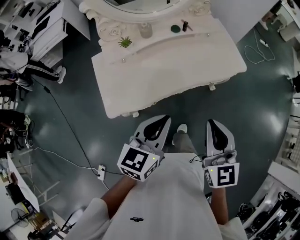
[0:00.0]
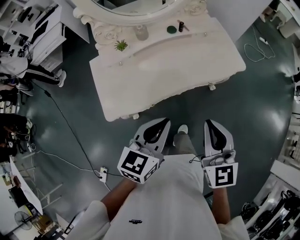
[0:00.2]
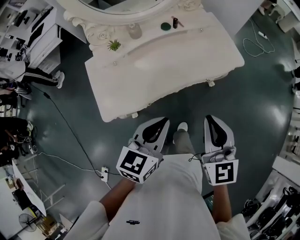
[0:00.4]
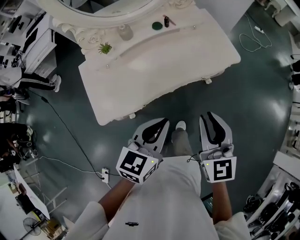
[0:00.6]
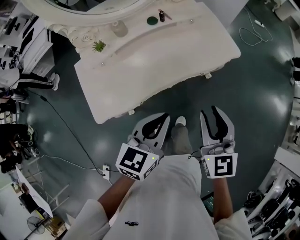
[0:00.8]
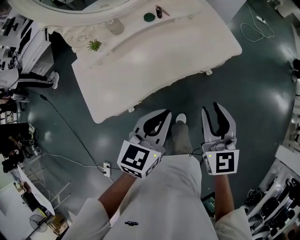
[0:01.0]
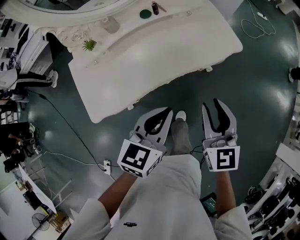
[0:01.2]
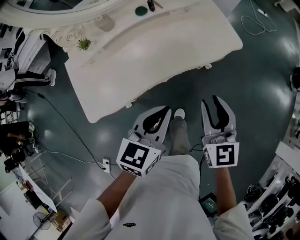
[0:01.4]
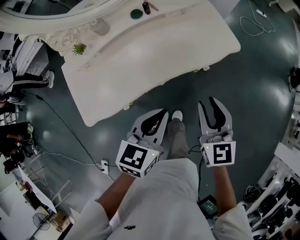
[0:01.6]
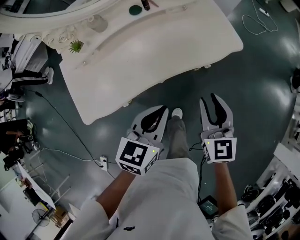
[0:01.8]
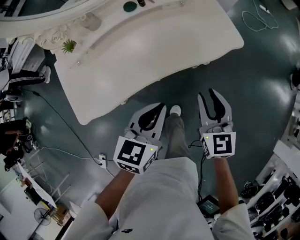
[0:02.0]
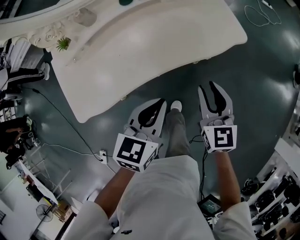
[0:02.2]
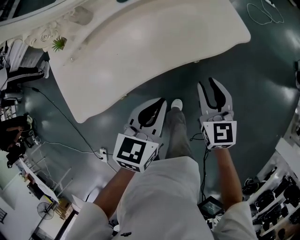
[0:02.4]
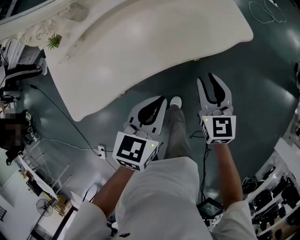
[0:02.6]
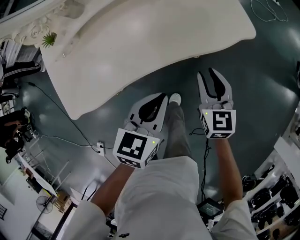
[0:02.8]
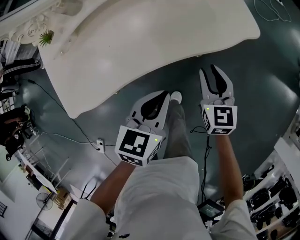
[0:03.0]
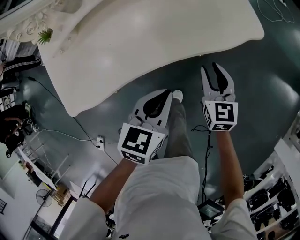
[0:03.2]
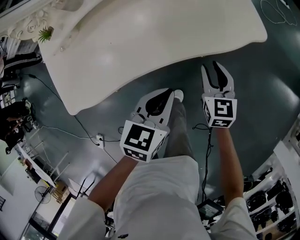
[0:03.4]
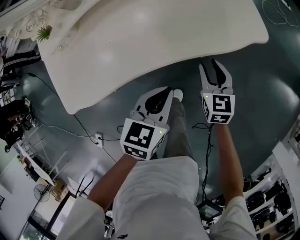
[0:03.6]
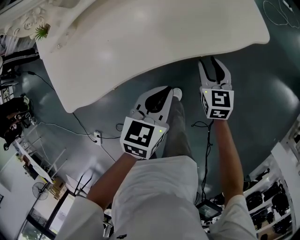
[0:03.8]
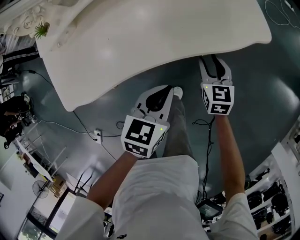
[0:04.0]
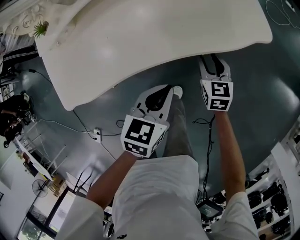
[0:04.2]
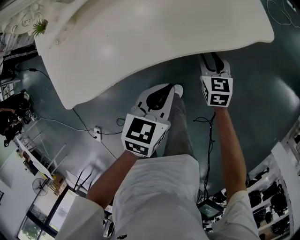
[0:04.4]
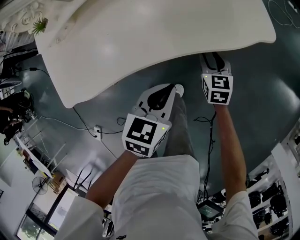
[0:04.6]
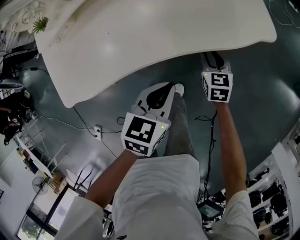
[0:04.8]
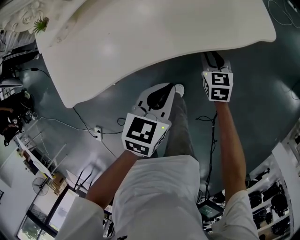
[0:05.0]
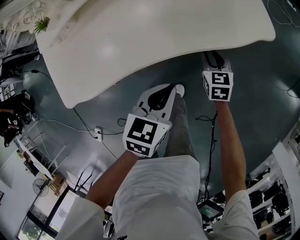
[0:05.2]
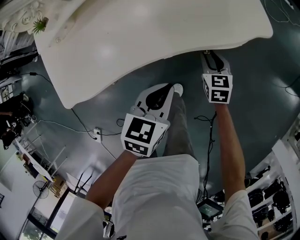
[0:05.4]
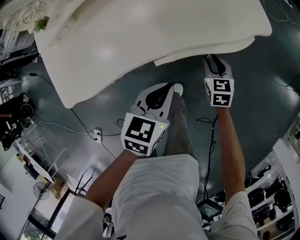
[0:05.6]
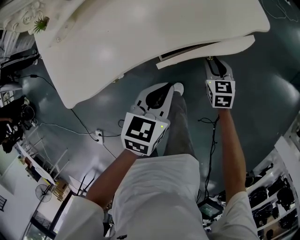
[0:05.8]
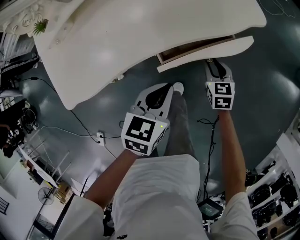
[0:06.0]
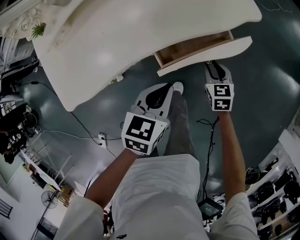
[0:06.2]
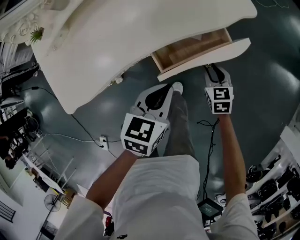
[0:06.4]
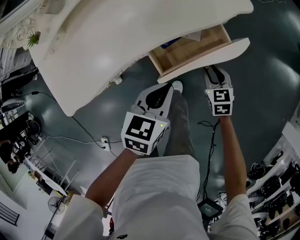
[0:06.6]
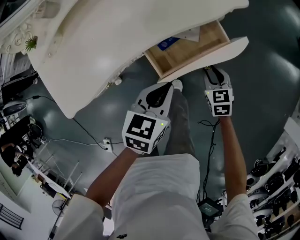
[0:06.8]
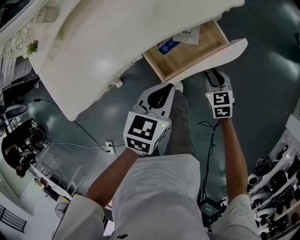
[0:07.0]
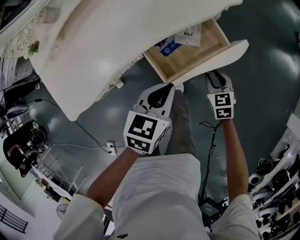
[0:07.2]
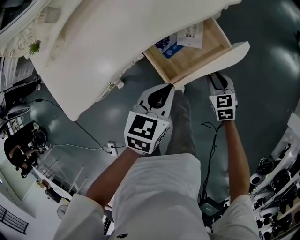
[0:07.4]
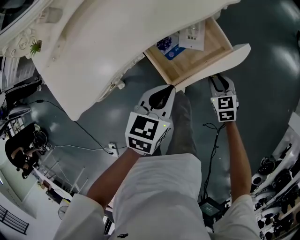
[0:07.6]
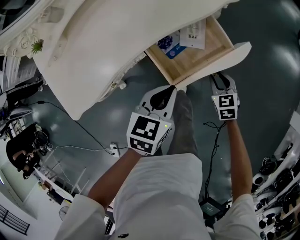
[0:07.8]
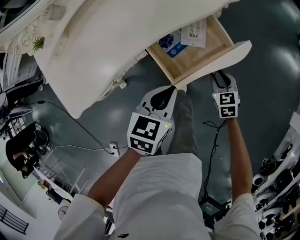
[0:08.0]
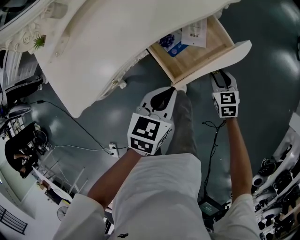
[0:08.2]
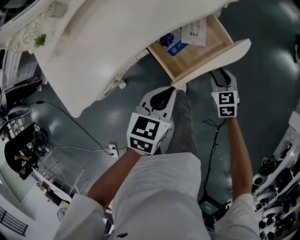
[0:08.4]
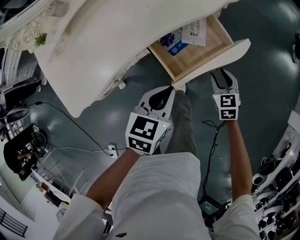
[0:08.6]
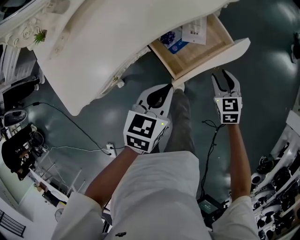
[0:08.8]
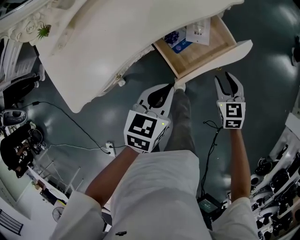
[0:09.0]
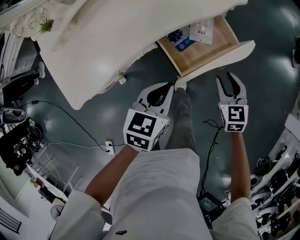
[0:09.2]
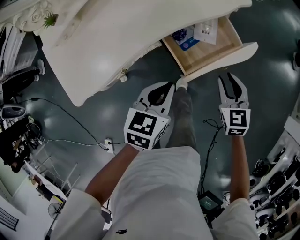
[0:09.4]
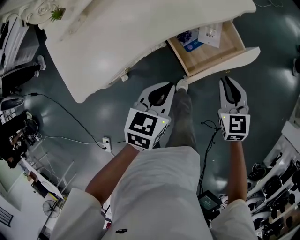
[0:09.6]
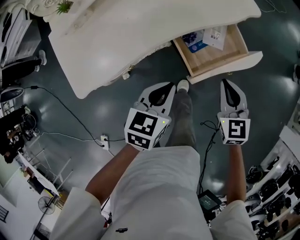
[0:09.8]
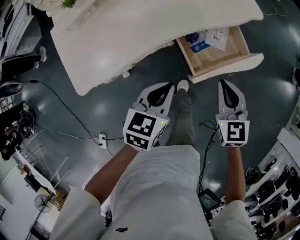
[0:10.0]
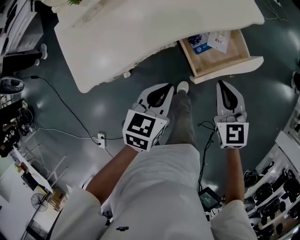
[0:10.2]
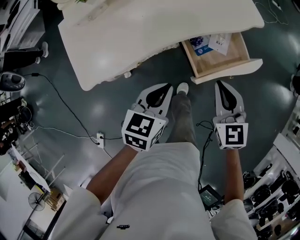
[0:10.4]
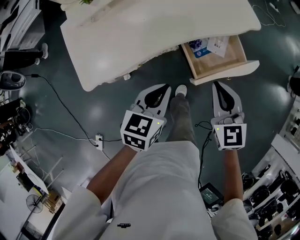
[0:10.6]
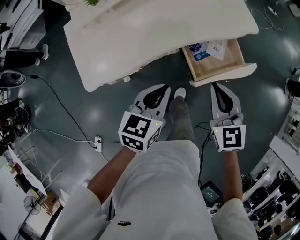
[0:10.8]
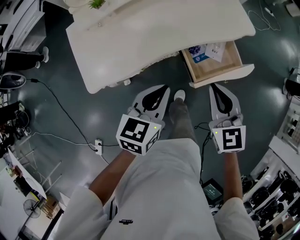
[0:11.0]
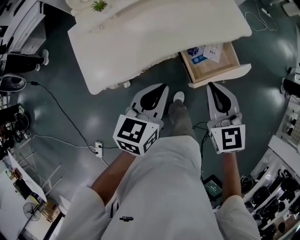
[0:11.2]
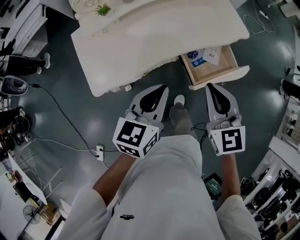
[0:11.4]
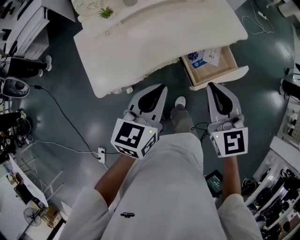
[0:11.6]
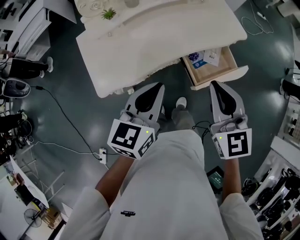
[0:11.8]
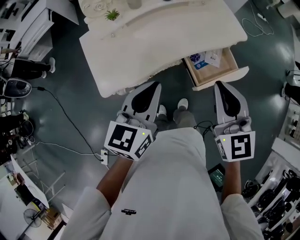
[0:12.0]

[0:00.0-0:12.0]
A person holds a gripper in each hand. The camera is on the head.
0:00.0 to 0:01.6: The left gripper is displaced to the right, downward and forward by approximately 15 cm. The right gripper heads downward, forward and to the right, covering some 20 cm, and opens.
0:01.6 to 0:03.0: The right gripper is displaced downward and forward by approximately 20 cm; the left gripper moves downward, about 10 cm.
0:03.0 to 0:04.4: The left gripper is displaced downward by about 5 cm; the right gripper goes some 15 cm downward.
0:04.4 to 0:06.0: The right gripper shifts some 5 cm backward.
0:06.0 to 0:07.6: The right gripper is displaced backward and to the right by some 10 cm.
0:07.6 to 0:09.0: The left gripper shifts by about 5 cm. Meanwhile the right gripper moves upward, about 10 cm.
0:09.0 to 0:10.4: The right gripper heads upward and to the left, covering some 20 cm, and closes its fingers. The left gripper travels to the left by roughly 10 cm.
0:10.4 to 0:12.0: The right gripper is displaced upward by roughly 20 cm. The left gripper travels upward and to the left by roughly 20 cm, and changes its angle by some 20 degrees.

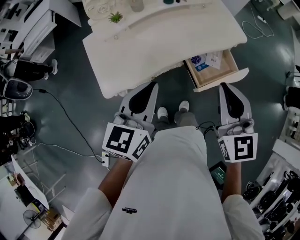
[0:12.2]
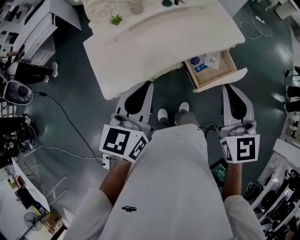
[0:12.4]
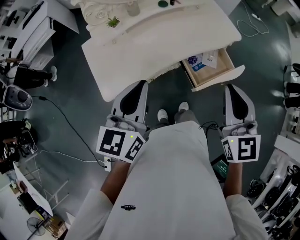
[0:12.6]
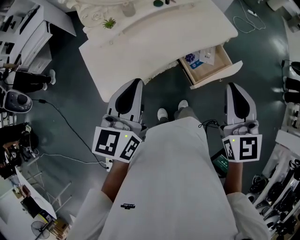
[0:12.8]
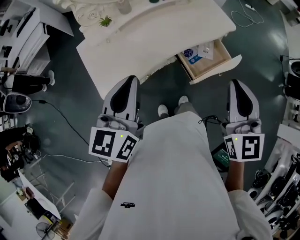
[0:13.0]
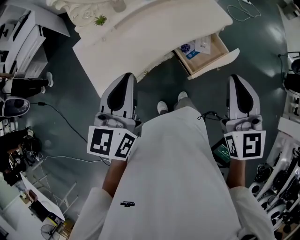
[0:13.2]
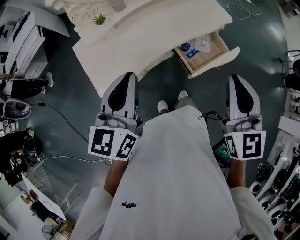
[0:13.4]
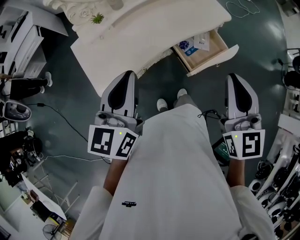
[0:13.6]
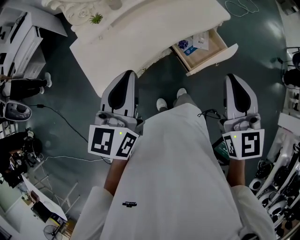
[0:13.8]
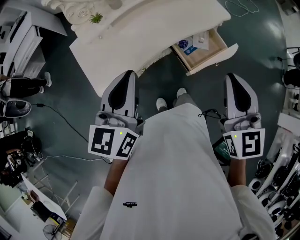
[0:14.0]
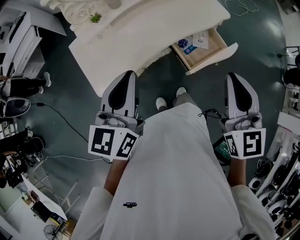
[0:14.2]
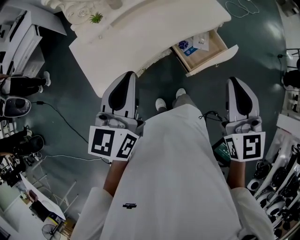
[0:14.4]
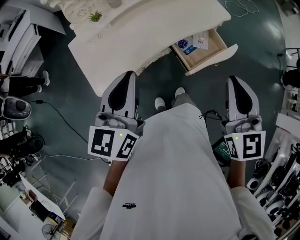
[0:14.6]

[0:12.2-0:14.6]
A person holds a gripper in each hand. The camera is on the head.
0:12.2 to 0:13.4: The right gripper ends up about 5 cm from where it was. The left gripper shifts by approximately 5 cm.
0:13.4 to 0:14.6: Both grippers stay about where they are.

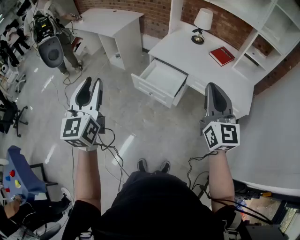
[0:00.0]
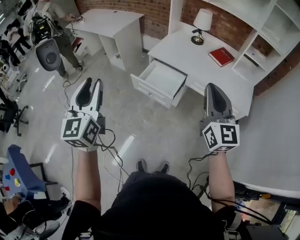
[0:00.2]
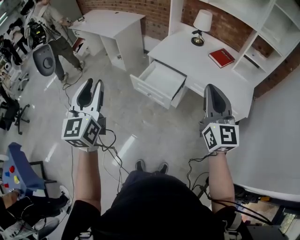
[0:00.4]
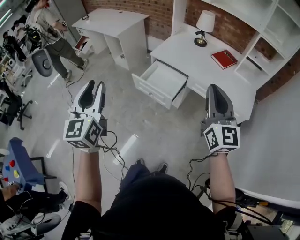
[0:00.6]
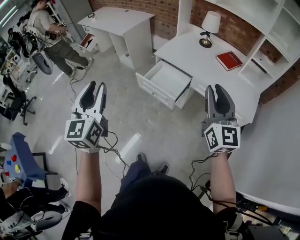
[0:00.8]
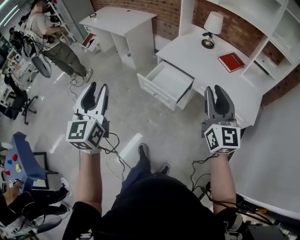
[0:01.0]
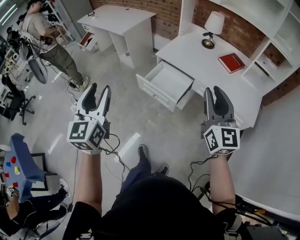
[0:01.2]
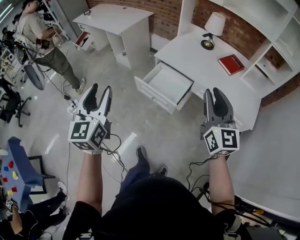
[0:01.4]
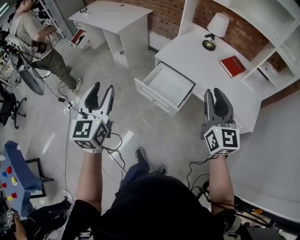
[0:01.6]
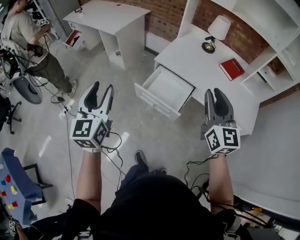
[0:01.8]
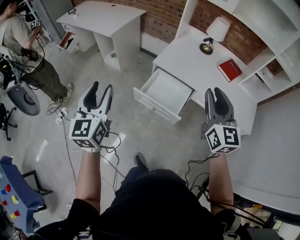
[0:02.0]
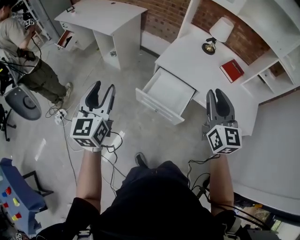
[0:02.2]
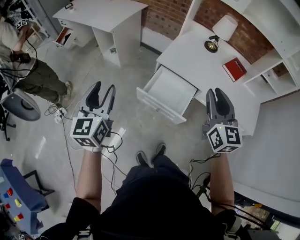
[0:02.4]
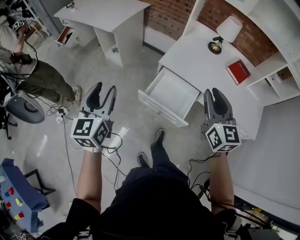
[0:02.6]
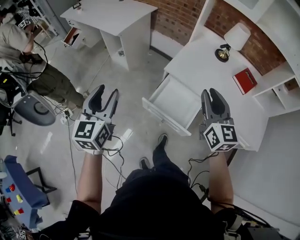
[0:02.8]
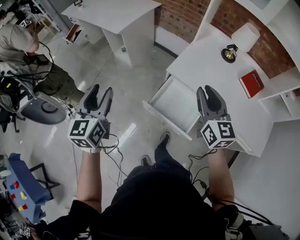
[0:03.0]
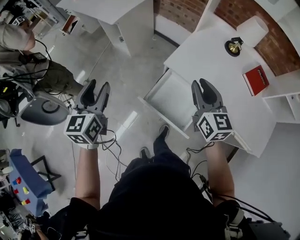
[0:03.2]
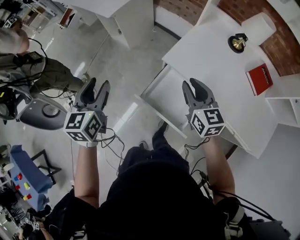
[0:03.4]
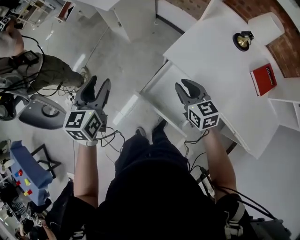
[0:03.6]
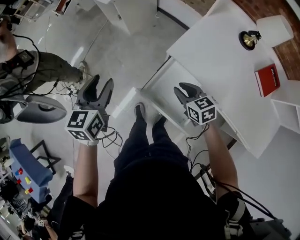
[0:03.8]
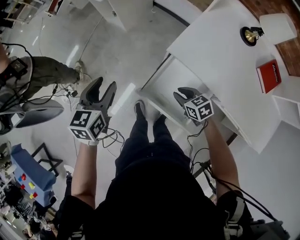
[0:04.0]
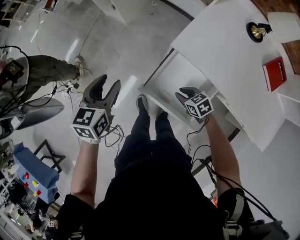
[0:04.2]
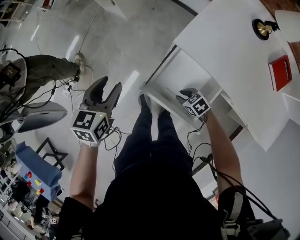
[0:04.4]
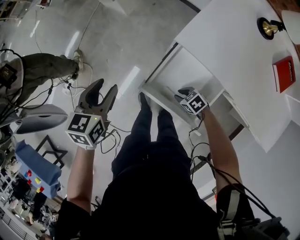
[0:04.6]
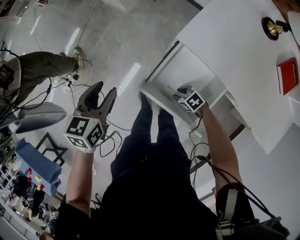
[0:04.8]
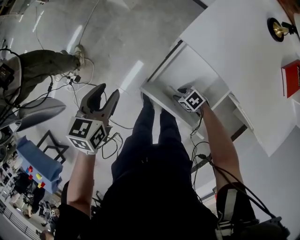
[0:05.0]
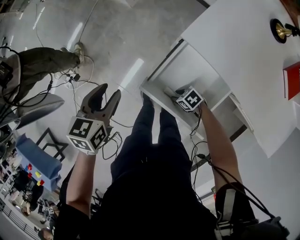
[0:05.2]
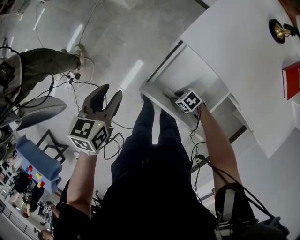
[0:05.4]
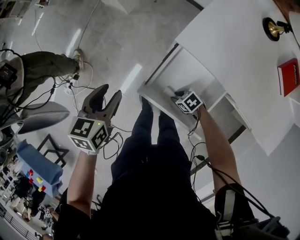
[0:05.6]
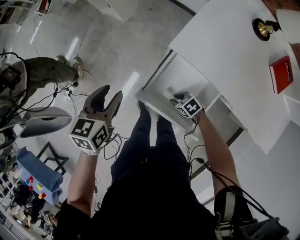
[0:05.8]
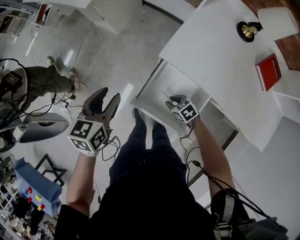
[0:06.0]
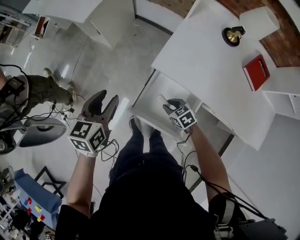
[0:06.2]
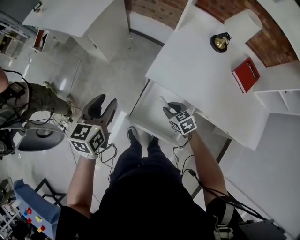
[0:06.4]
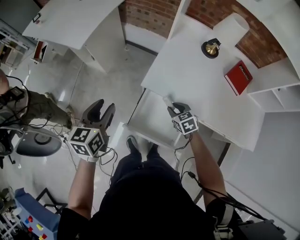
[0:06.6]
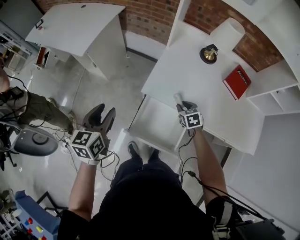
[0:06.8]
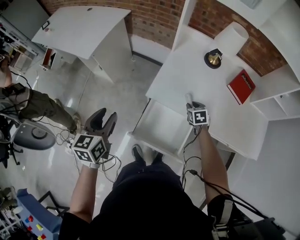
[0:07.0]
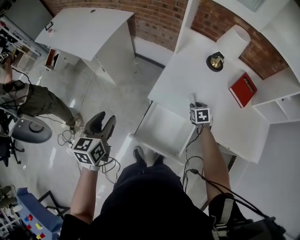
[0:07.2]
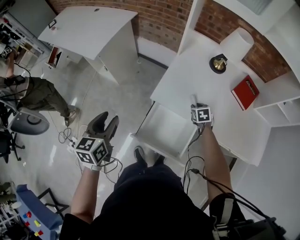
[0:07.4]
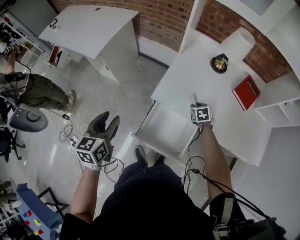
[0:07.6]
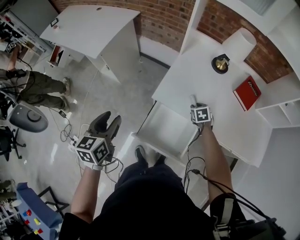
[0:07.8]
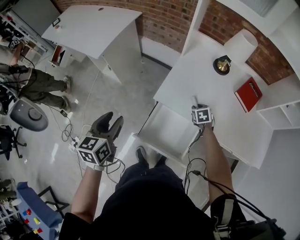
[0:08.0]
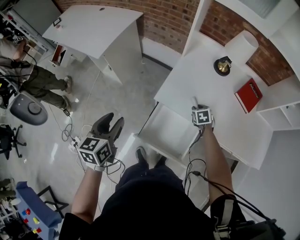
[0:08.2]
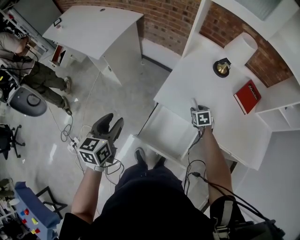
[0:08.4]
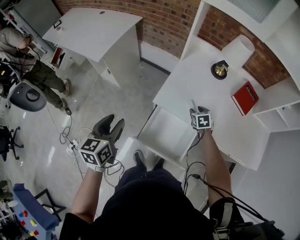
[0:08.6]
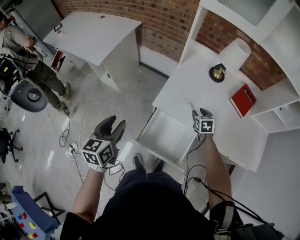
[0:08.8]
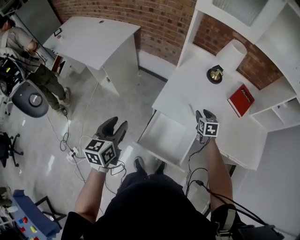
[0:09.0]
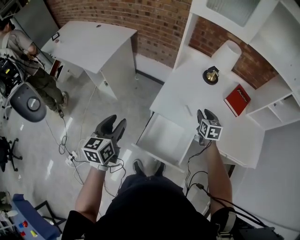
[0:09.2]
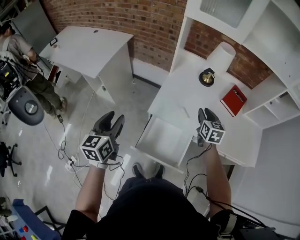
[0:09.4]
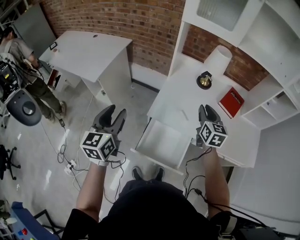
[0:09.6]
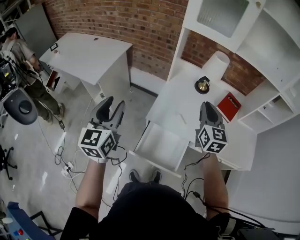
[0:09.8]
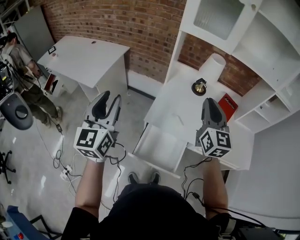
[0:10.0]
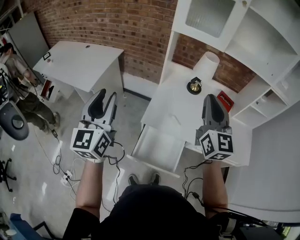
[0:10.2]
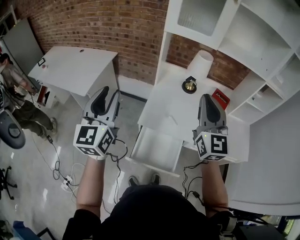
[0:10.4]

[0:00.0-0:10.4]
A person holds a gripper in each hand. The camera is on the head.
0:00.0 to 0:01.4: The right gripper goes roughly 5 cm forward, and opens its fingers, while the left gripper goes about 5 cm downward.
0:01.4 to 0:03.0: The right gripper shifts roughly 35 cm forward and to the left, while the left gripper goes some 30 cm forward.
0:03.0 to 0:04.4: The left gripper goes roughly 20 cm downward, and turns by some 30 degrees. The right gripper goes approximately 50 cm downward, and tips its fingers downward by some 50 degrees.
0:04.4 to 0:06.0: The right gripper reaches about 10 cm downward, then returns.
0:06.0 to 0:07.4: The left gripper goes roughly 10 cm upward. The right gripper ends up approximately 30 cm from where it was, and turns by roughly 40 degrees.
0:07.4 to 0:09.0: The right gripper heads upward, covering some 10 cm.
0:09.0 to 0:10.4: The right gripper shifts about 40 cm upward, angles its fingers upward, by some 50 degrees, and closes, while the left gripper moves upward, approximately 25 cm, and tips its fingers upward by roughly 30 degrees.
